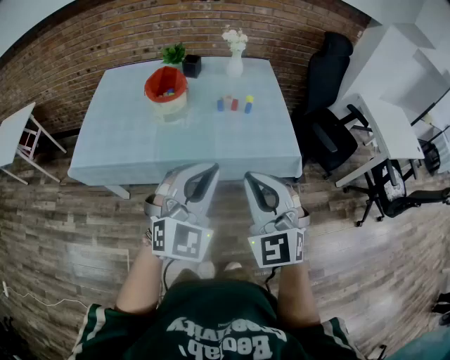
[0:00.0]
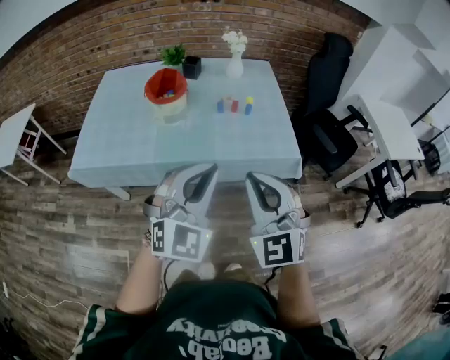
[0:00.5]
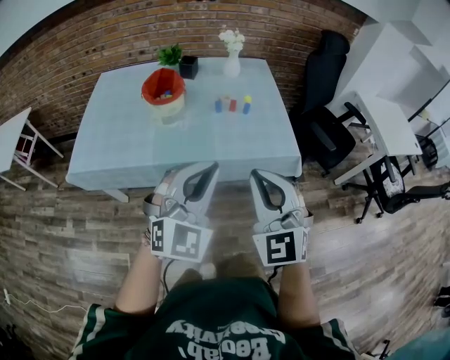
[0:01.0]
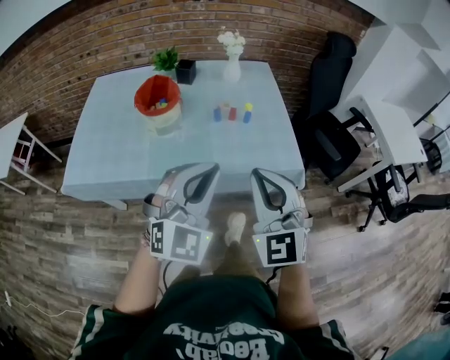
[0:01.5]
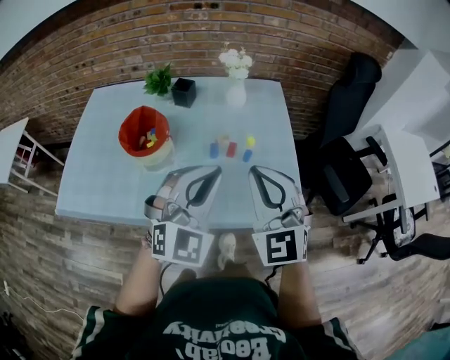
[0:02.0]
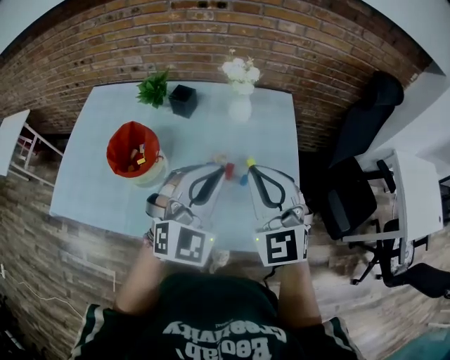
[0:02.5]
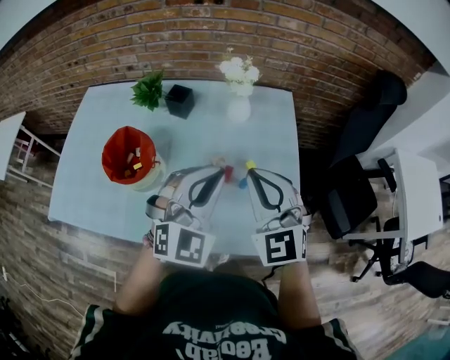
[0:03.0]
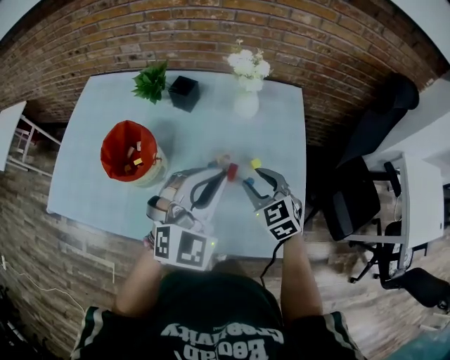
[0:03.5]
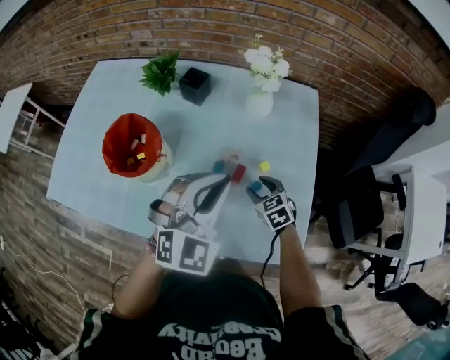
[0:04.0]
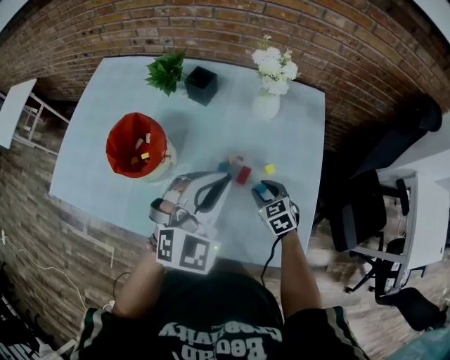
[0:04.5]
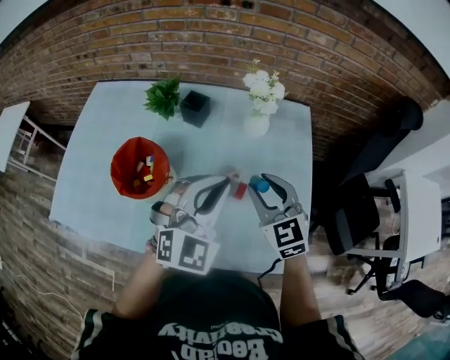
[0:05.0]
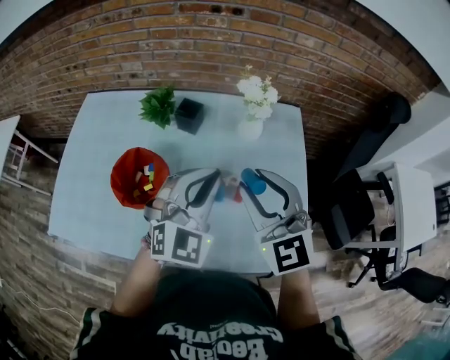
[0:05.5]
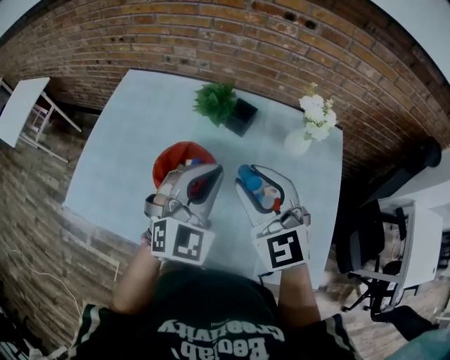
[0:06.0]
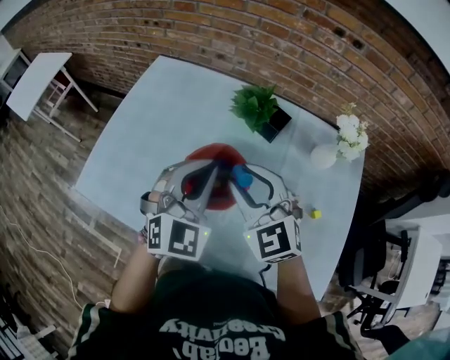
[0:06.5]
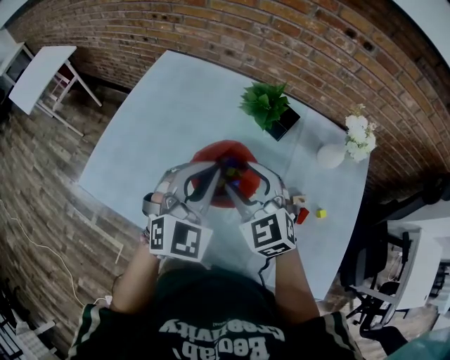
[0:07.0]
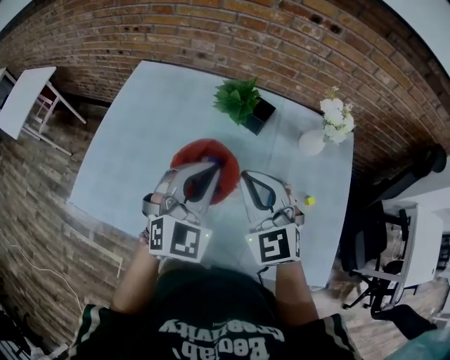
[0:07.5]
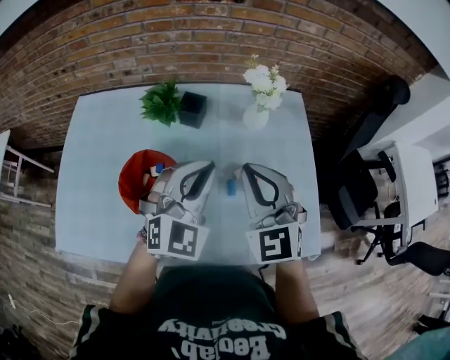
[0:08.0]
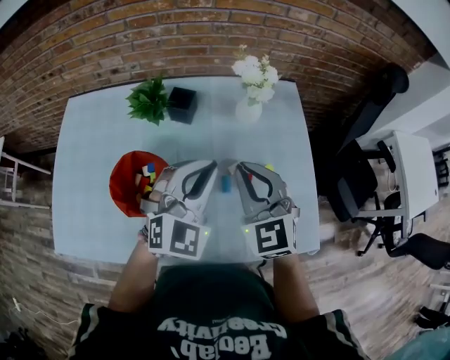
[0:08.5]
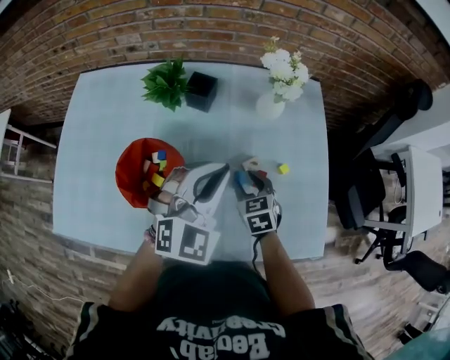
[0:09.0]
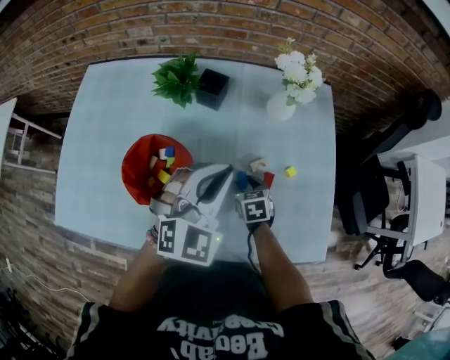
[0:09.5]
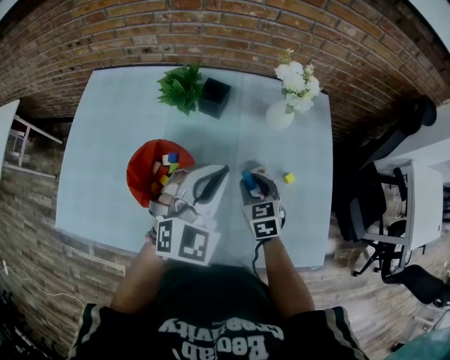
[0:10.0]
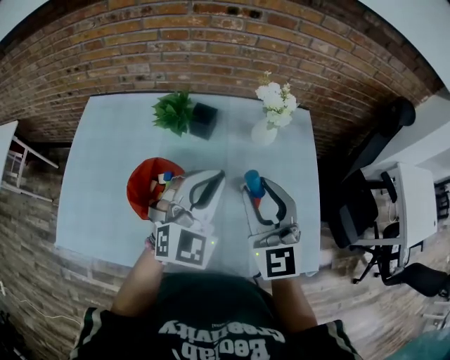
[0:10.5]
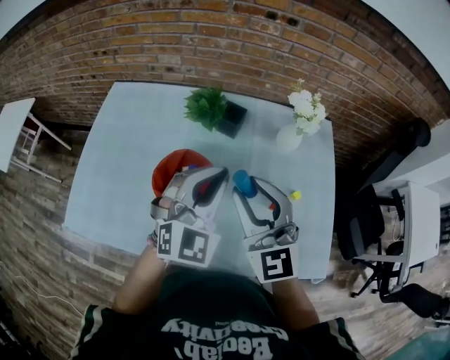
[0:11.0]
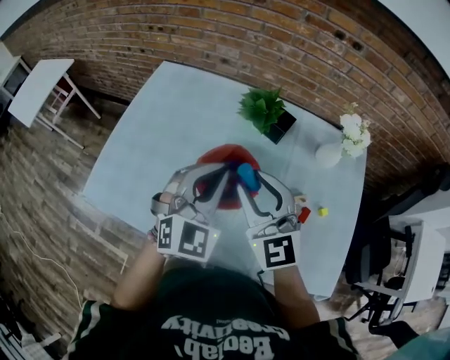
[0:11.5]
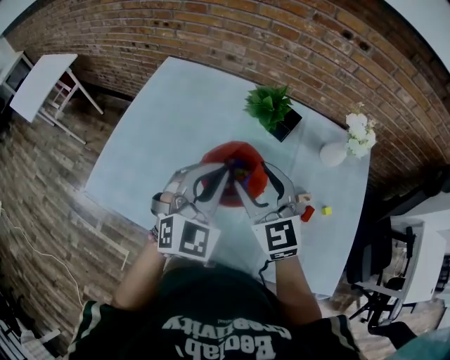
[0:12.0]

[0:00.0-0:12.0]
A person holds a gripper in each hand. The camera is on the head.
0:00.0 to 0:02.0: The grippers both shift forward by some 30 cm.
0:02.0 to 0:04.0: The right gripper travels downward and forward by about 40 cm, tips its fingers downward by about 40 degrees, and opens, while the left gripper goes about 20 cm forward and downward.
0:04.0 to 0:06.0: The right gripper travels upward and to the left by about 40 cm, and tips its fingers upward by approximately 30 degrees. The left gripper heads to the left and forward, covering roughly 20 cm.
0:06.0 to 0:08.0: The right gripper reaches some 10 cm downward, then returns, and turns by about 20 degrees.
0:08.0 to 0:10.0: The right gripper heads downward, covering about 25 cm, and turns by some 40 degrees.
0:10.0 to 0:12.0: The right gripper shifts approximately 30 cm to the left and upward, and rotates approximately 40 degrees; the left gripper is displaced to the left by approximately 20 cm.

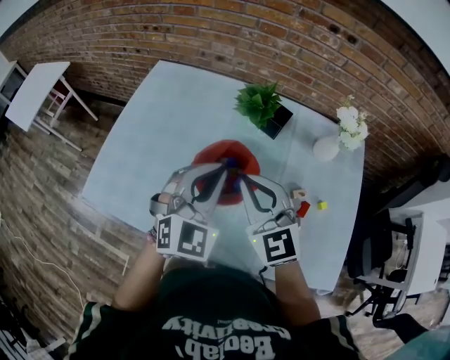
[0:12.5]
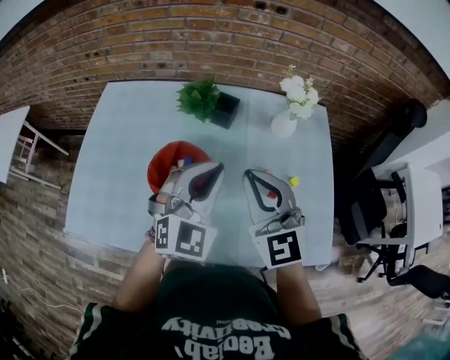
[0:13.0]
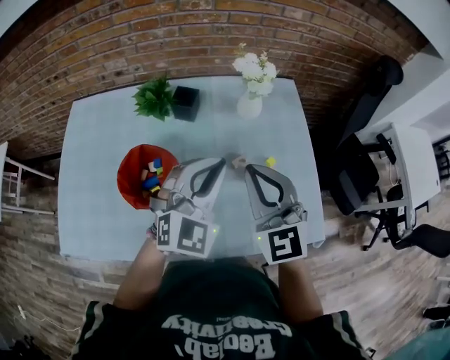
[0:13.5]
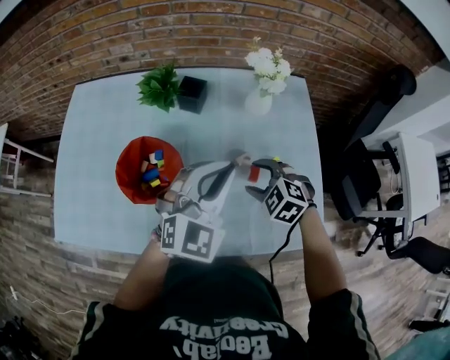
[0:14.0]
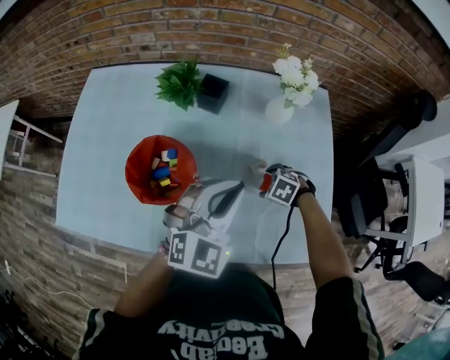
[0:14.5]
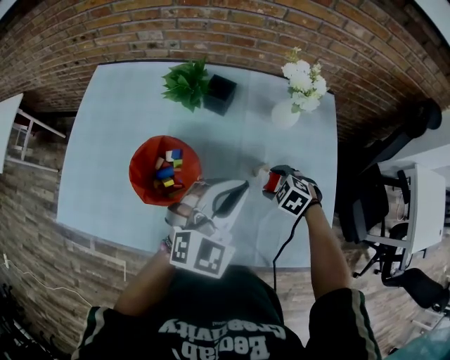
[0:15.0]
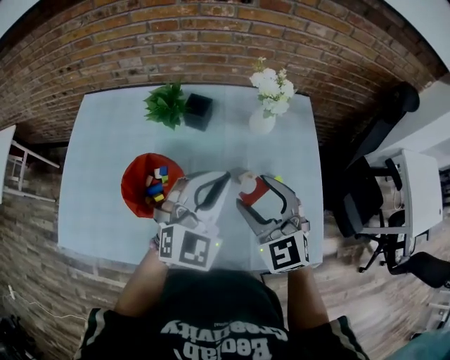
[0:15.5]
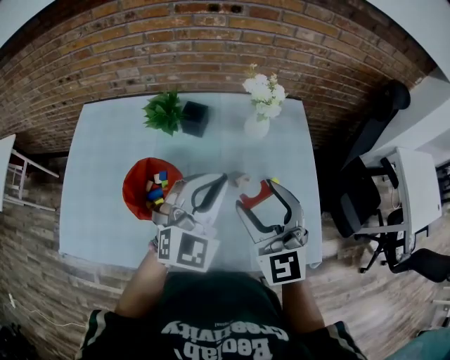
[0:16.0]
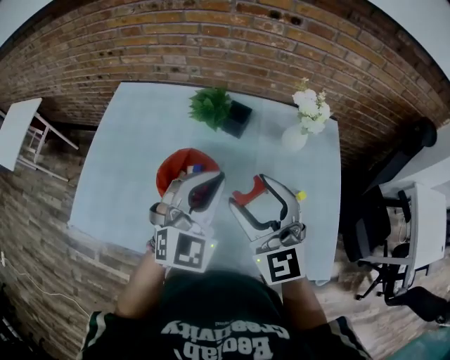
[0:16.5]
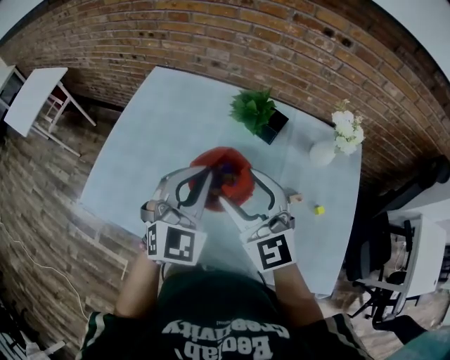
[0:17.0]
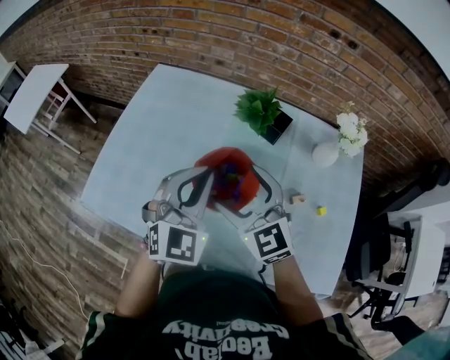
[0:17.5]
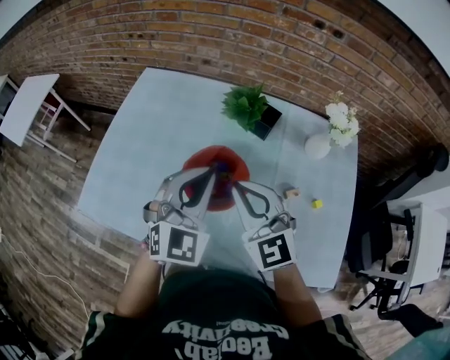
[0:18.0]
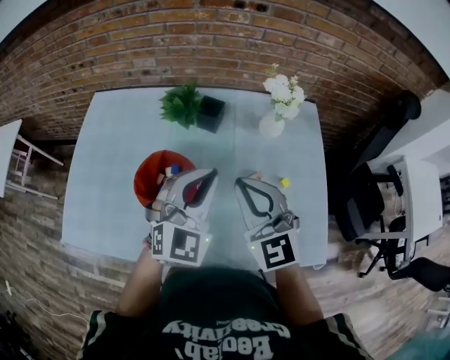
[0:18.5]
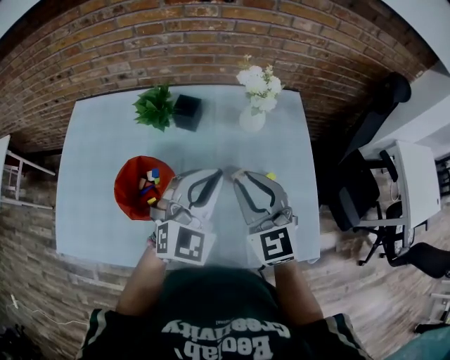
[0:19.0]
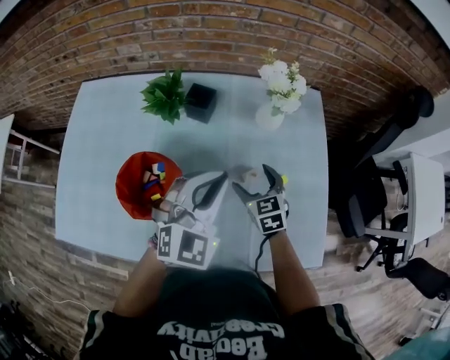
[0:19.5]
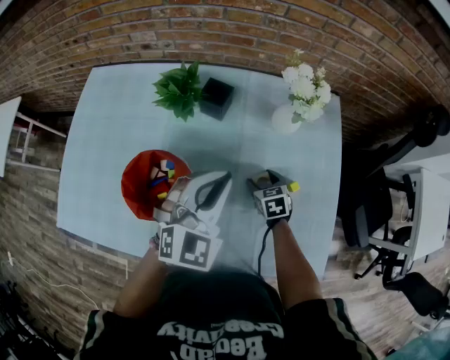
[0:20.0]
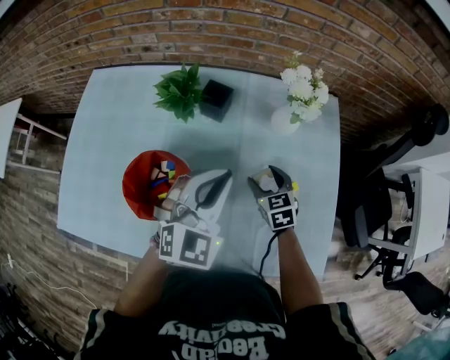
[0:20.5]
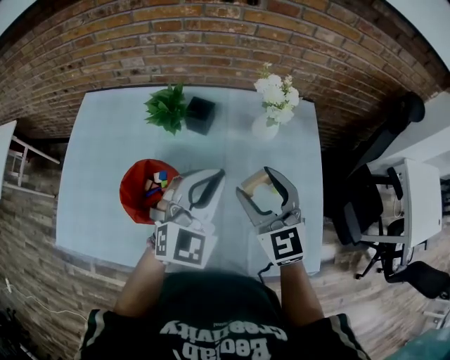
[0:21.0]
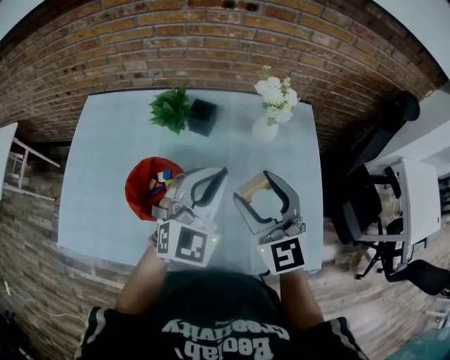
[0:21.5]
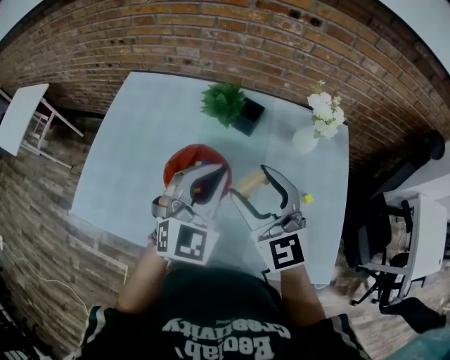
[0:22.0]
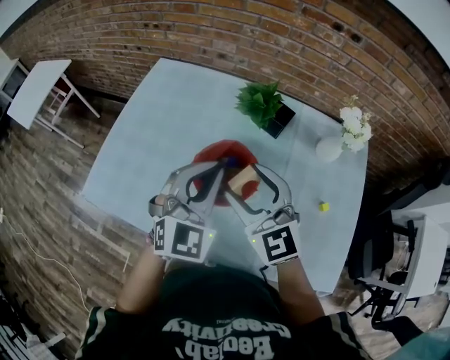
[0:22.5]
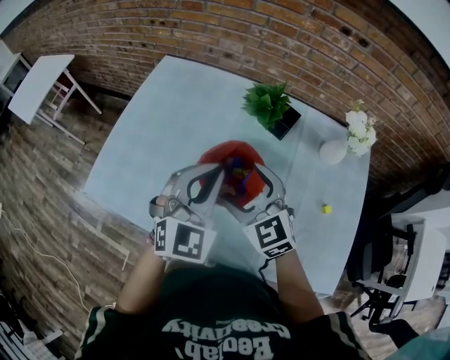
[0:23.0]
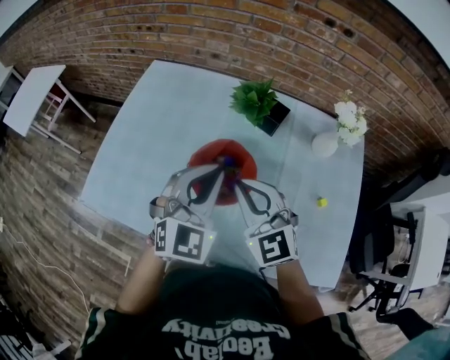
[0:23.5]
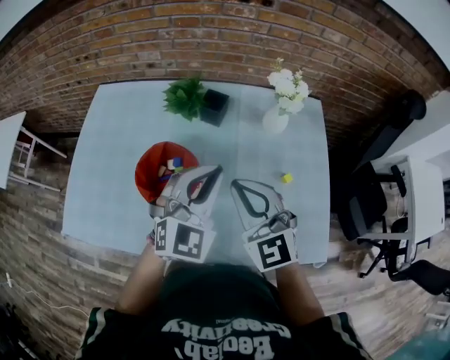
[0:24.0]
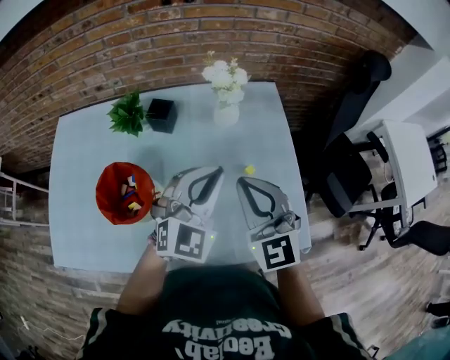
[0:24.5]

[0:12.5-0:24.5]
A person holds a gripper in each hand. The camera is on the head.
0:12.5 to 0:14.5: The left gripper ends up about 20 cm from where it was, and rotates roughly 20 degrees; the right gripper shifts roughly 30 cm downward, angles its fingers downward, by roughly 70 degrees, and opens.
0:14.5 to 0:16.5: The left gripper moves about 15 cm, while the right gripper travels upward by some 35 cm, and points its fingers roughly 70 degrees further upward.
0:16.5 to 0:18.5: The left gripper moves some 15 cm to the left and comes back, while the right gripper travels to the left and back again, about 15 cm each way, and closes up.
0:18.5 to 0:20.5: The left gripper moves downward and forward, some 10 cm. Meanwhile the right gripper moves downward and forward, roughly 30 cm, angles its fingers downward, by about 30 degrees, and opens its fingers.
0:20.5 to 0:22.5: The left gripper shifts roughly 20 cm to the left. The right gripper is displaced to the left and upward by roughly 35 cm, and rotates about 40 degrees.
0:22.5 to 0:24.5: The right gripper changes place by approximately 30 cm, turns by about 30 degrees, and closes up. Meanwhile the left gripper ends up roughly 30 cm from where it was, and swivels roughly 30 degrees.

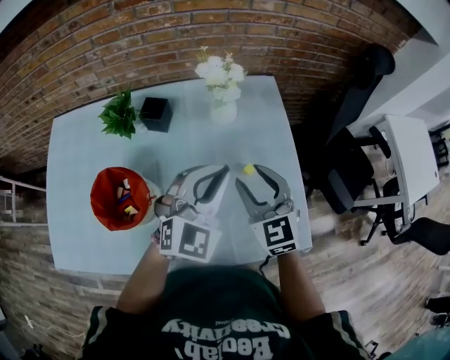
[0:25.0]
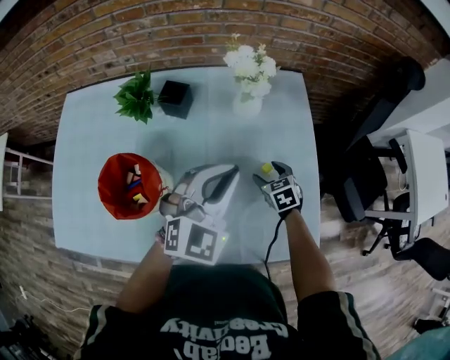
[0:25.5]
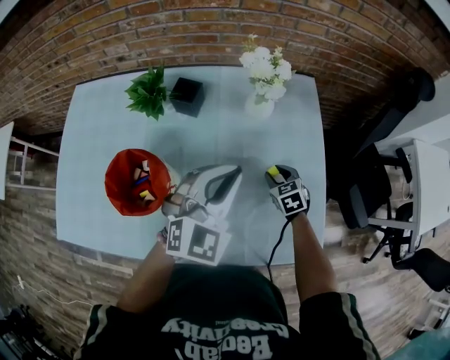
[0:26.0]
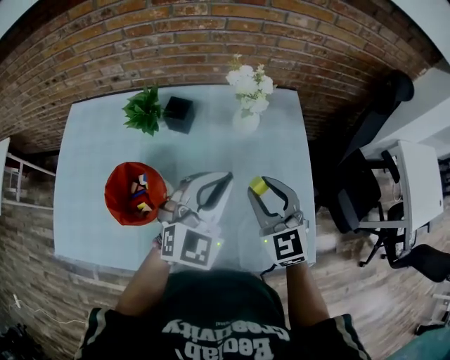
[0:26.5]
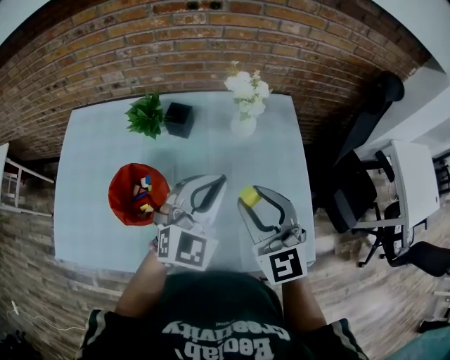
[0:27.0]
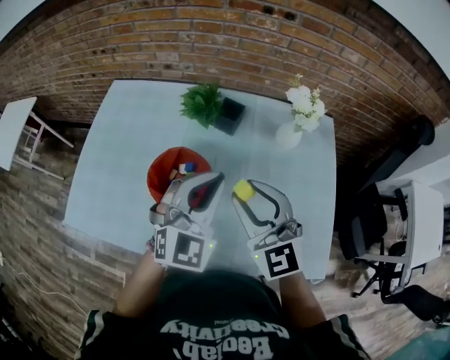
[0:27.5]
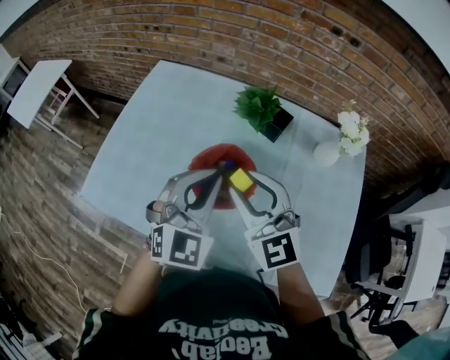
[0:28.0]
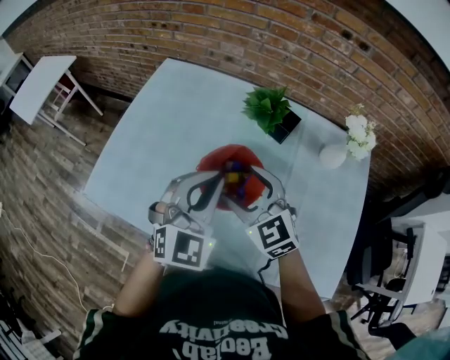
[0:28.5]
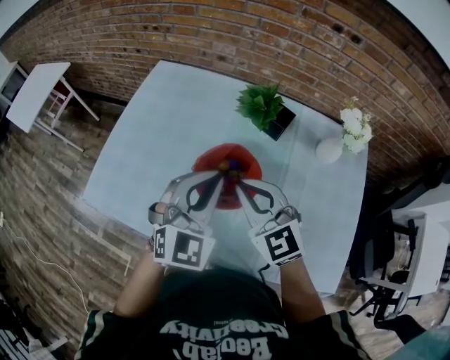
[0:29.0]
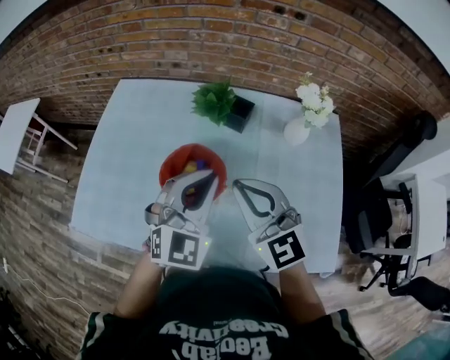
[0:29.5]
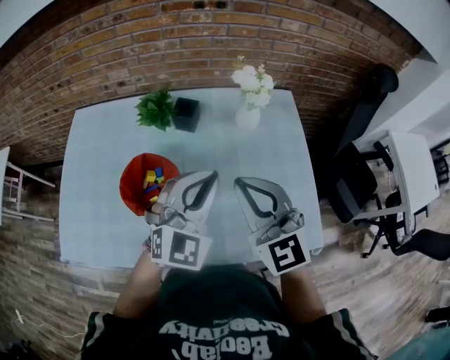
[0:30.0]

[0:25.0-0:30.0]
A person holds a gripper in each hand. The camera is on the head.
0:25.0 to 0:27.5: Both grippers move to the left, some 20 cm. The right gripper goes downward and returns, about 25 cm each way, and turns by roughly 30 degrees.
0:27.5 to 0:30.0: The right gripper reaches approximately 5 cm downward, then returns, and opens and closes again.
